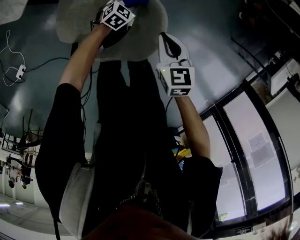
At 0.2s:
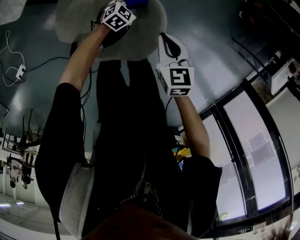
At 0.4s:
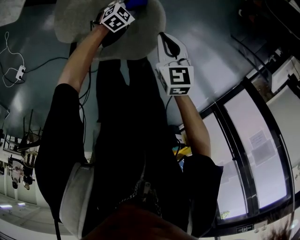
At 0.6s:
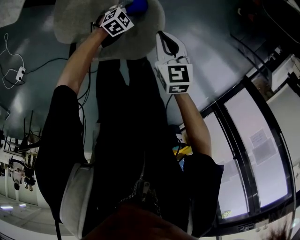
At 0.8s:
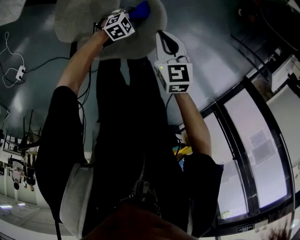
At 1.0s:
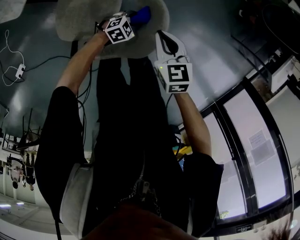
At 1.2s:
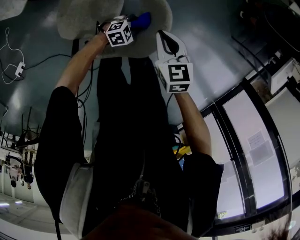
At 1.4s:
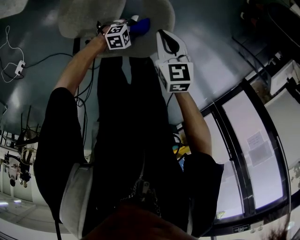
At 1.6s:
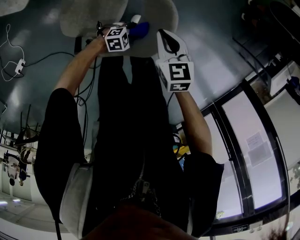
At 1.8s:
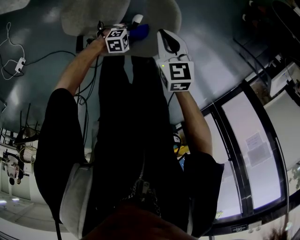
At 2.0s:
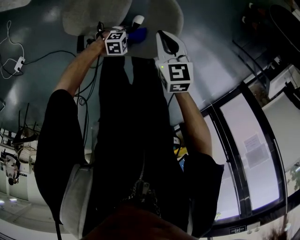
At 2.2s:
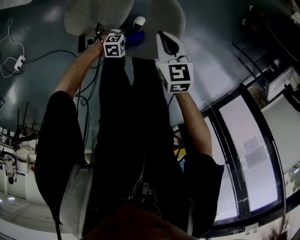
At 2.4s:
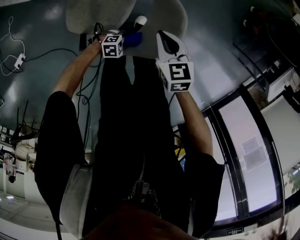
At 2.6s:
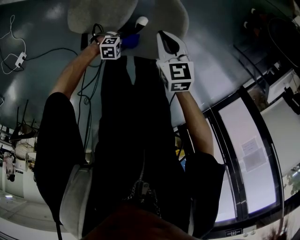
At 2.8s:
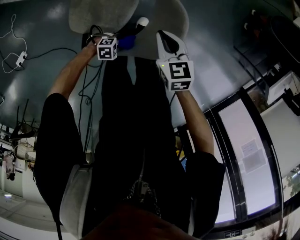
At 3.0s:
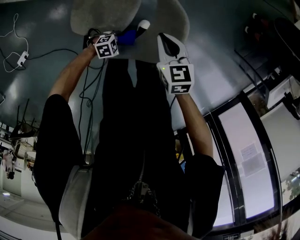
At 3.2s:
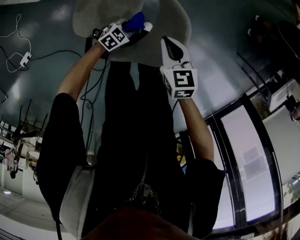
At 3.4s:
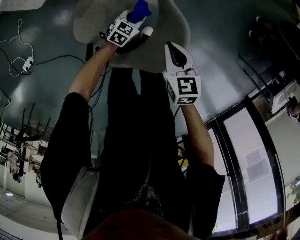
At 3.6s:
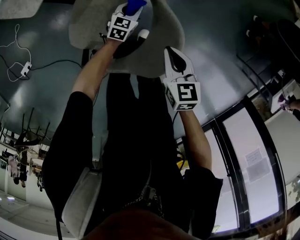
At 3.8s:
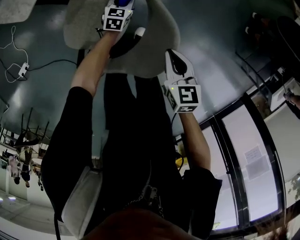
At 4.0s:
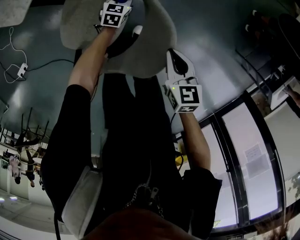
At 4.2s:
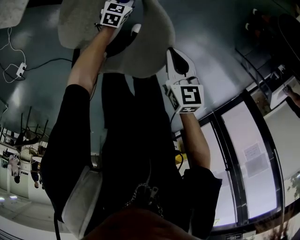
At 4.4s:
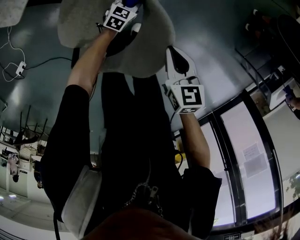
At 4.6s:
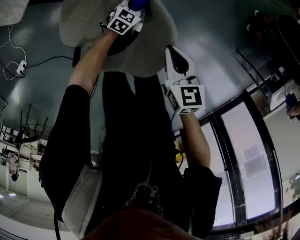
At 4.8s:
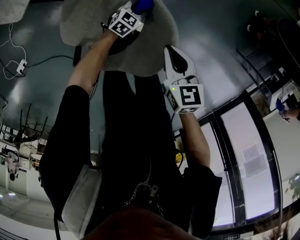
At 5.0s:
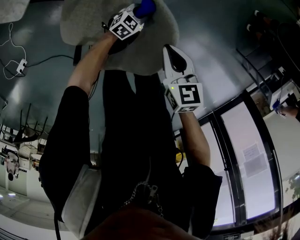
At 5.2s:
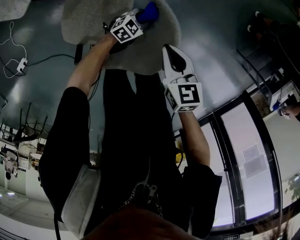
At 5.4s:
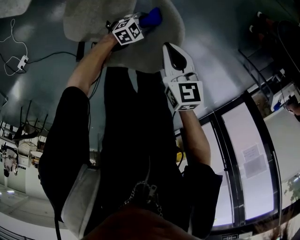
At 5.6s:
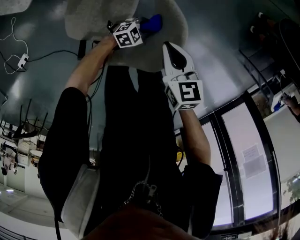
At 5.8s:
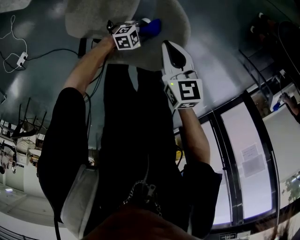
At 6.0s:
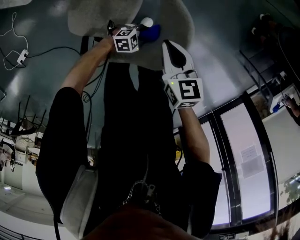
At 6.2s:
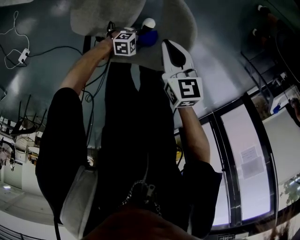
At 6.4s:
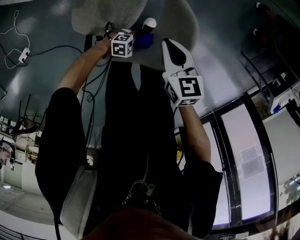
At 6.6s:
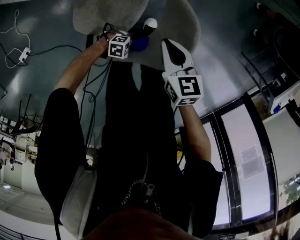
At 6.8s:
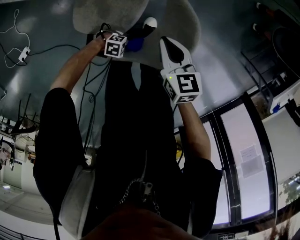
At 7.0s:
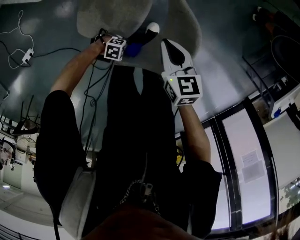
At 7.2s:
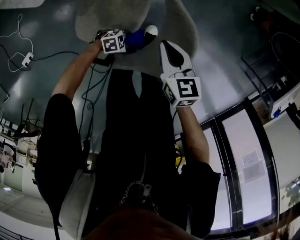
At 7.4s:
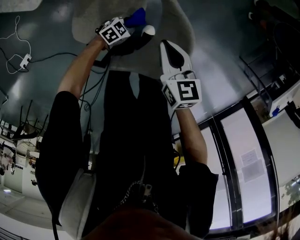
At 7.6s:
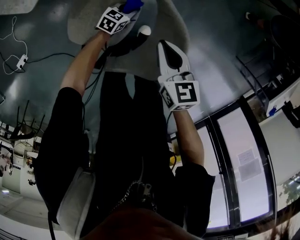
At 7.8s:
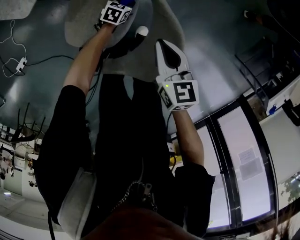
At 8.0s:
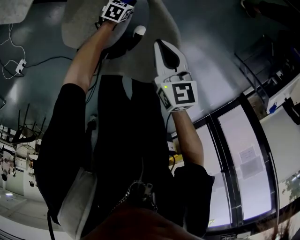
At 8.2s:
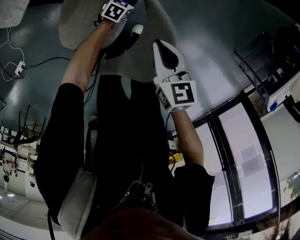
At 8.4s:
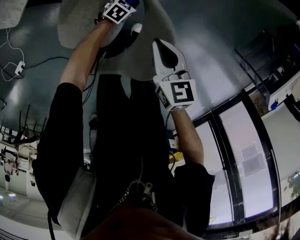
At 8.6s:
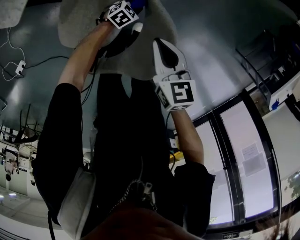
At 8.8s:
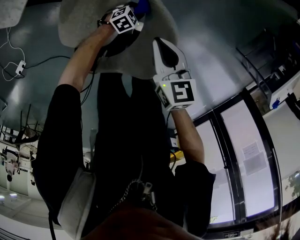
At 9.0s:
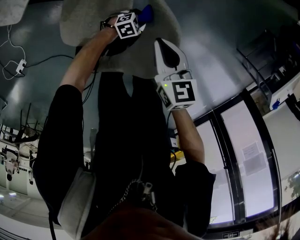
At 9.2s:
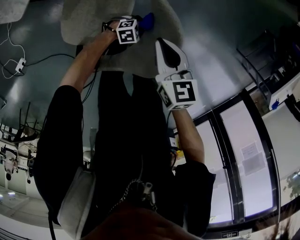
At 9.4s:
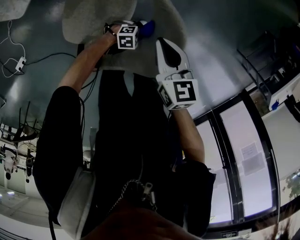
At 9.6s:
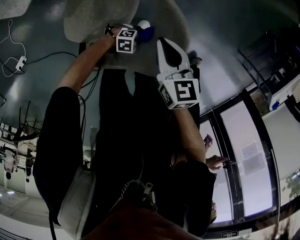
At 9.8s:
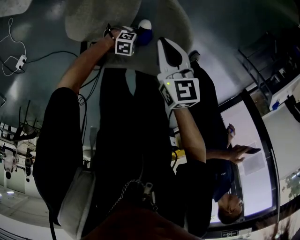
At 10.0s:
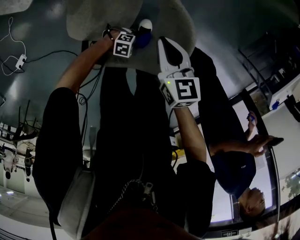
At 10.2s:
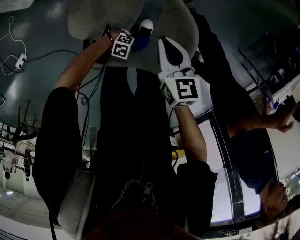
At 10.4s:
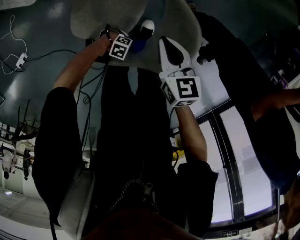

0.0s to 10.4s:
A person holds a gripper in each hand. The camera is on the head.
0.0s to 1.4s: The left gripper moves roughly 20 cm, and turns by approximately 30 degrees.
1.4s to 3.0s: The left gripper ends up about 10 cm from where it was.
3.0s to 4.4s: The right gripper moves approximately 10 cm; the left gripper moves some 30 cm, and turns by some 50 degrees.
4.4s to 6.0s: The right gripper changes place by some 5 cm. Meanwhile the left gripper ends up roughly 25 cm from where it was, and changes its angle by approximately 50 degrees.
6.0s to 7.4s: The left gripper changes place by some 15 cm, and turns by about 20 degrees.
7.4s to 9.0s: The left gripper moves to the right, approximately 10 cm, and goes forward and returns, some 15 cm each way.
9.0s to 10.4s: The right gripper ends up approximately 5 cm from where it was. Meanwhile the left gripper shifts by about 25 cm, and rotates some 40 degrees.

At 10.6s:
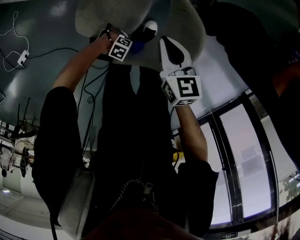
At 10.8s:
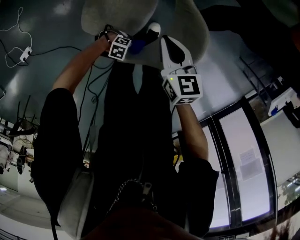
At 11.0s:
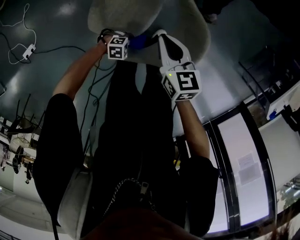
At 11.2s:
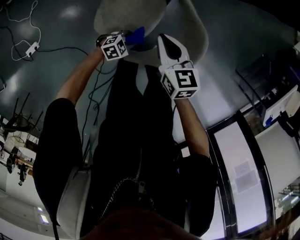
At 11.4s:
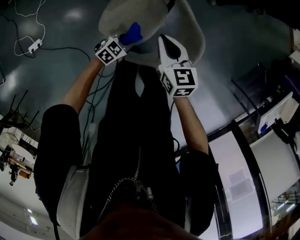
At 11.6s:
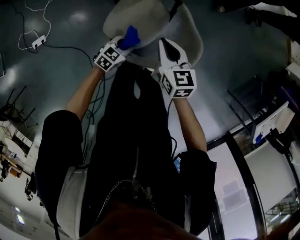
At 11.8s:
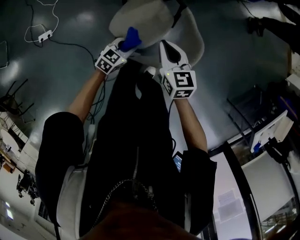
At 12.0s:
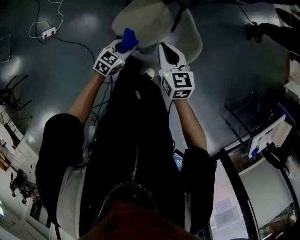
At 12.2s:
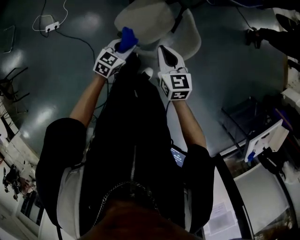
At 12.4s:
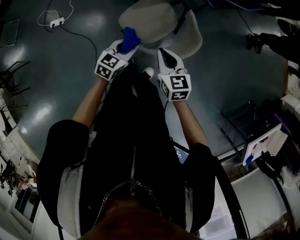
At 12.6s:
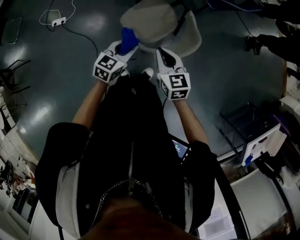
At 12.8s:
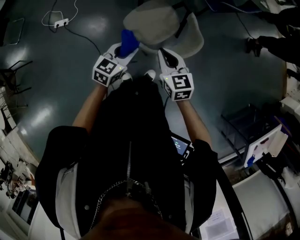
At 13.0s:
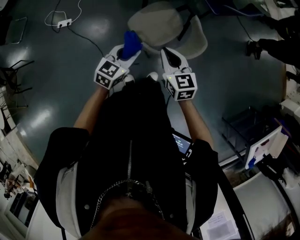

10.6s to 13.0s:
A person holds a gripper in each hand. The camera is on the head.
10.6s to 11.8s: The left gripper is displaced upward by about 25 cm, and turns by approximately 100 degrees. The right gripper moves upward, about 10 cm, and turns by some 20 degrees.
11.8s to 13.0s: The left gripper heads upward and backward, covering some 25 cm, and changes its angle by about 20 degrees. Meanwhile the right gripper shifts about 15 cm backward.

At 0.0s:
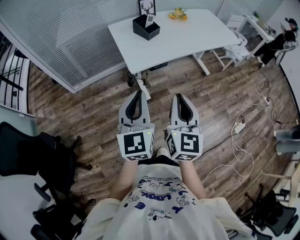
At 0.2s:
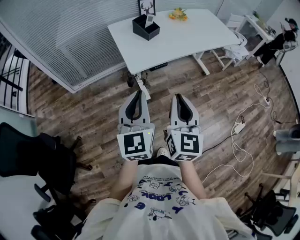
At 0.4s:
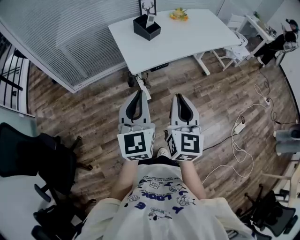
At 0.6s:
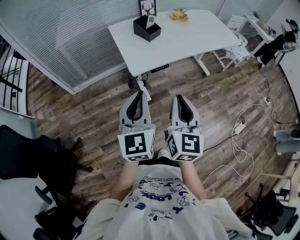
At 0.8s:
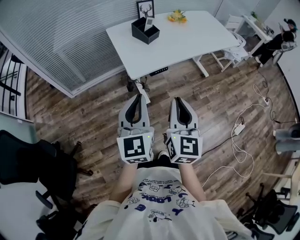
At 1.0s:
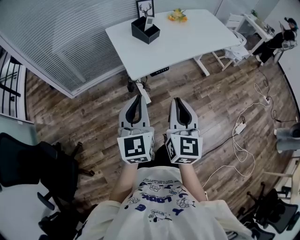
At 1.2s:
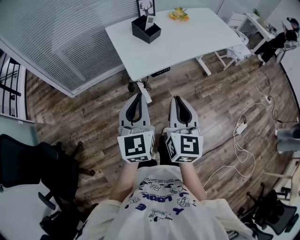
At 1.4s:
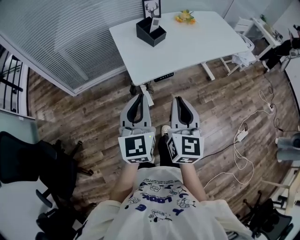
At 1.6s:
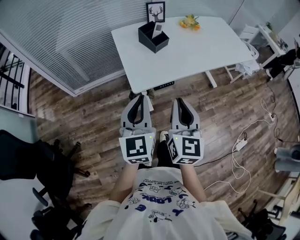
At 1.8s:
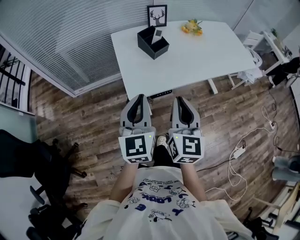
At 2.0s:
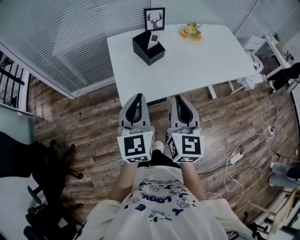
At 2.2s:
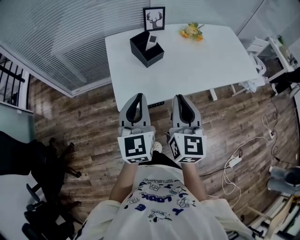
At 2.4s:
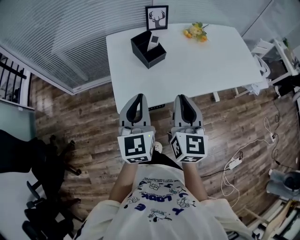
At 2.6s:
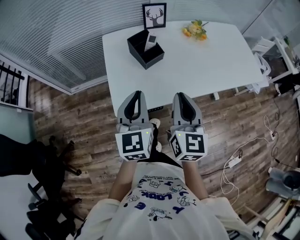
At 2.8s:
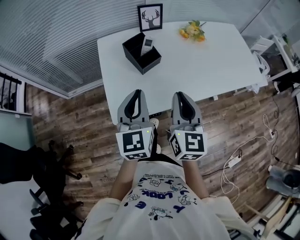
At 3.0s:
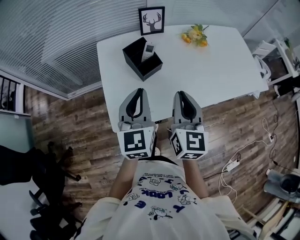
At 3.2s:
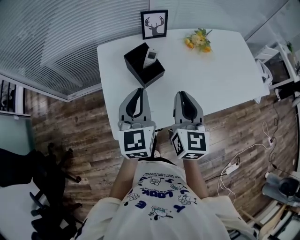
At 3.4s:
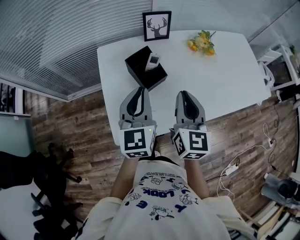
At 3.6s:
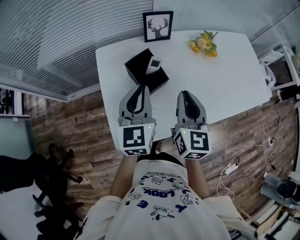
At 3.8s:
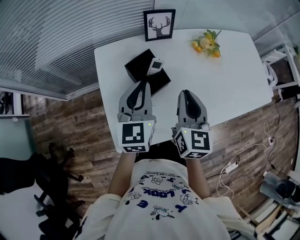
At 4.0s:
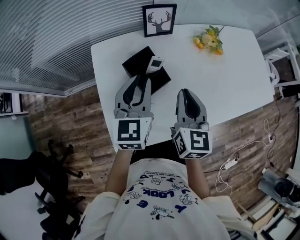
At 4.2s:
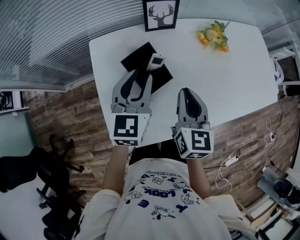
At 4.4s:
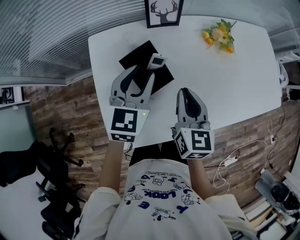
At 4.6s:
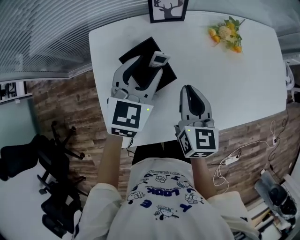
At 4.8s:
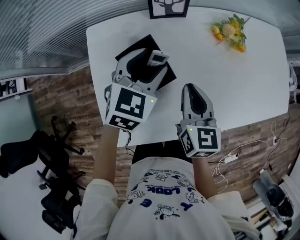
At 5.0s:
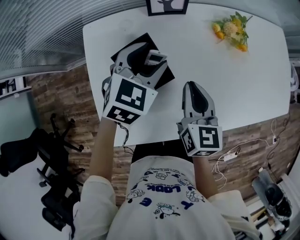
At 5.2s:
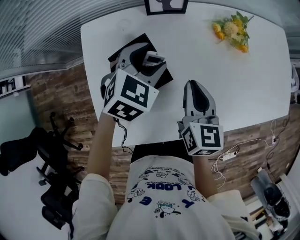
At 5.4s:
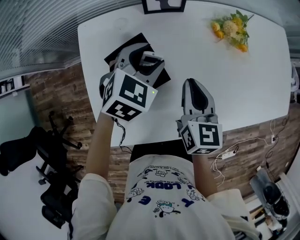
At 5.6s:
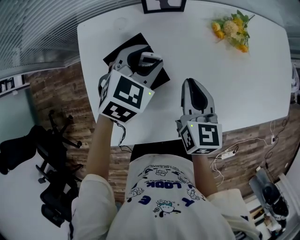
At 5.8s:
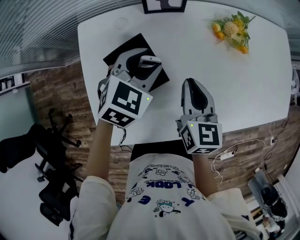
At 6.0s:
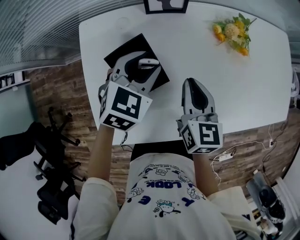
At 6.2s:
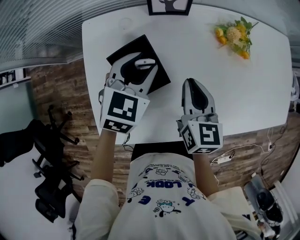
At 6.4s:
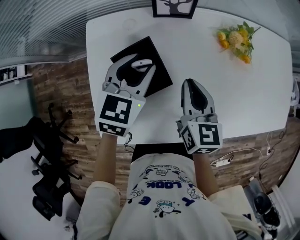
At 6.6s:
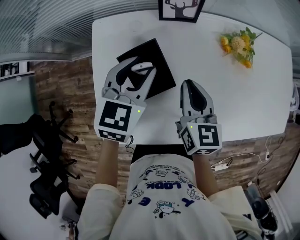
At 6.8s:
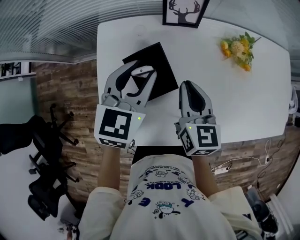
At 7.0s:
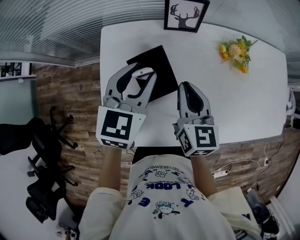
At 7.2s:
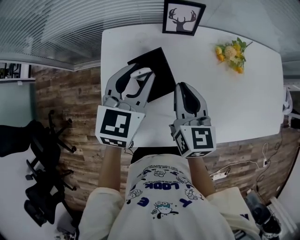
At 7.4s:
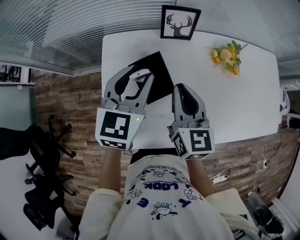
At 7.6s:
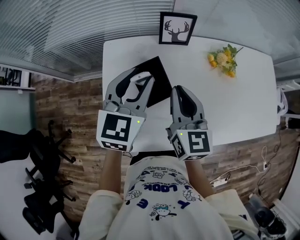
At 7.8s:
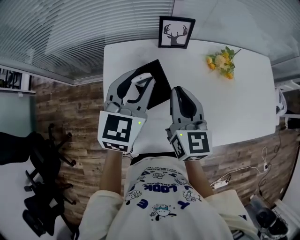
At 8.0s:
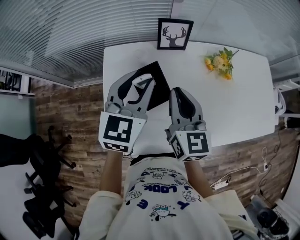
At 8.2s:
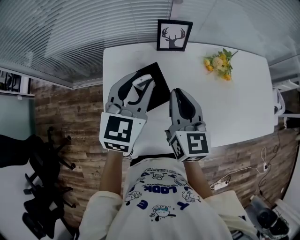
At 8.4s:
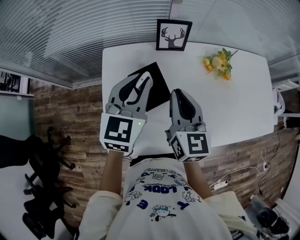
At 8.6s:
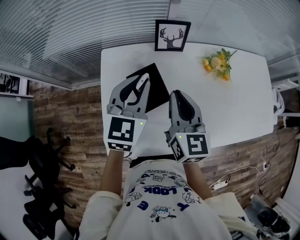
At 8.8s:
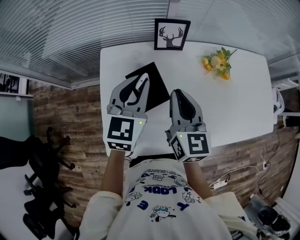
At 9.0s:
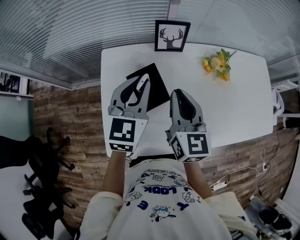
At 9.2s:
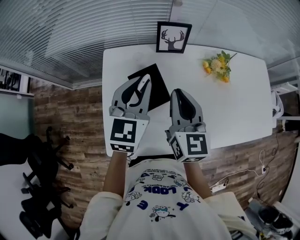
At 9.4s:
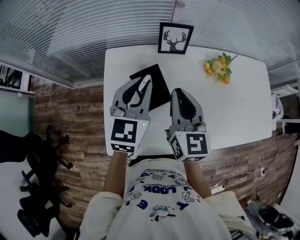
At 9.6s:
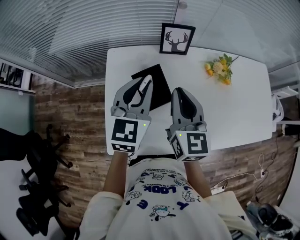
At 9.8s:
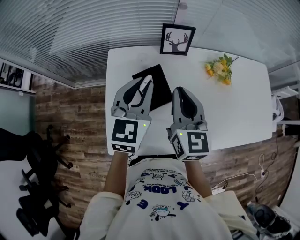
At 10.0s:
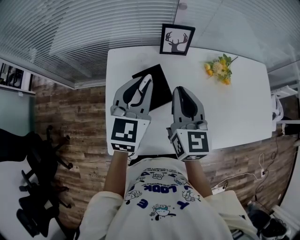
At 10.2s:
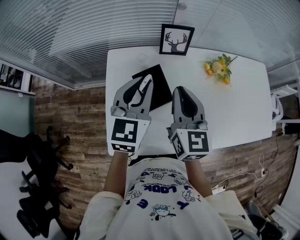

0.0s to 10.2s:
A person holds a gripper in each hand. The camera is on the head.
0.0s to 1.4s: The grippers both shift forward by roughly 10 cm.
1.4s to 3.0s: Both grippers travel together forward, about 35 cm.
3.0s to 4.4s: The left gripper goes some 20 cm forward, swivels roughly 20 degrees, and opens, while the right gripper shifts about 20 cm forward and downward.
4.4s to 5.8s: The right gripper moves forward and downward, about 10 cm, while the left gripper is displaced downward and forward by about 10 cm, and turns by about 30 degrees.
5.8s to 7.2s: Both grippers travel together upward and to the left, some 10 cm. The left gripper rotates about 30 degrees.
7.2s to 8.8s: The left gripper closes its fingers; the right gripper goes about 5 cm upward.
8.8s to 10.2s: The grippers move only a little.
